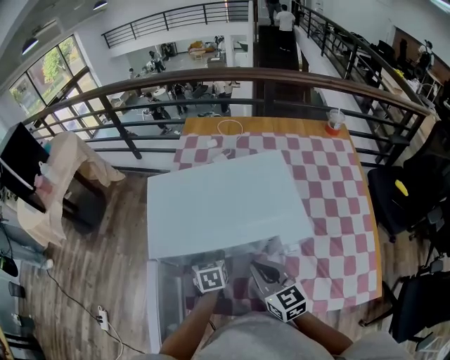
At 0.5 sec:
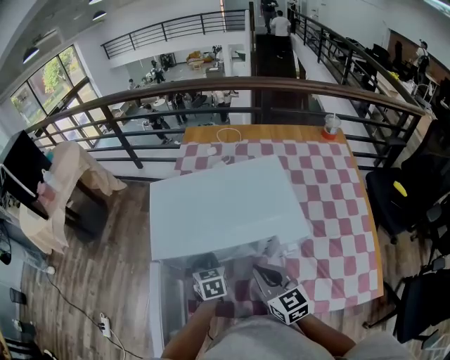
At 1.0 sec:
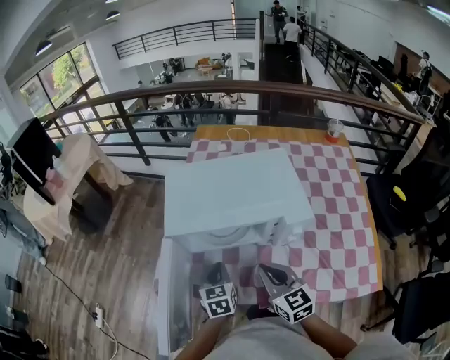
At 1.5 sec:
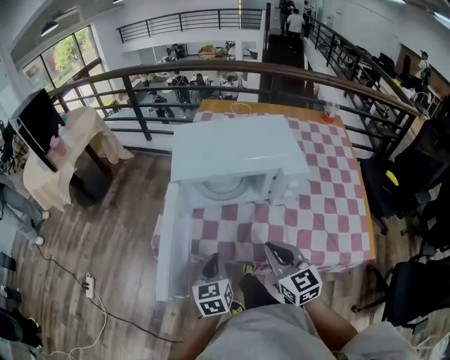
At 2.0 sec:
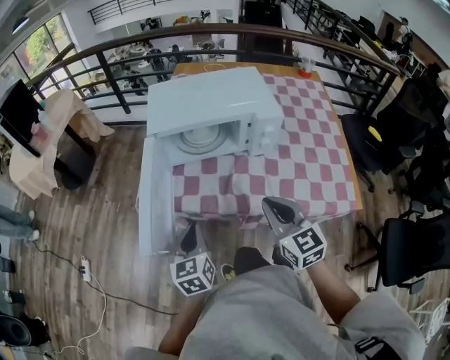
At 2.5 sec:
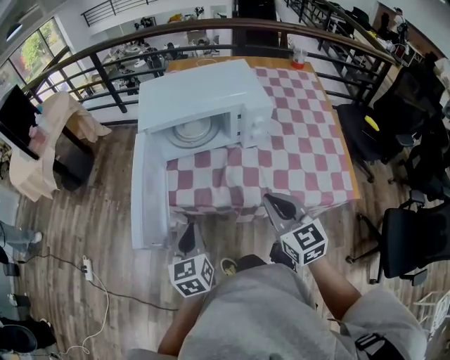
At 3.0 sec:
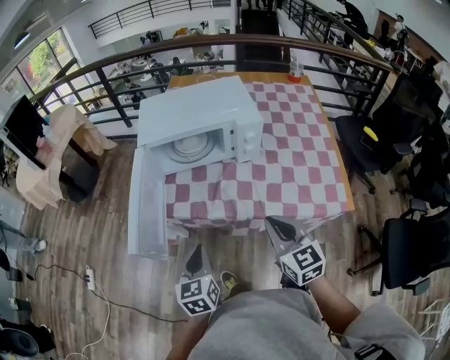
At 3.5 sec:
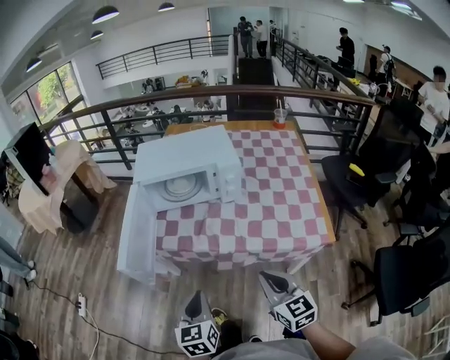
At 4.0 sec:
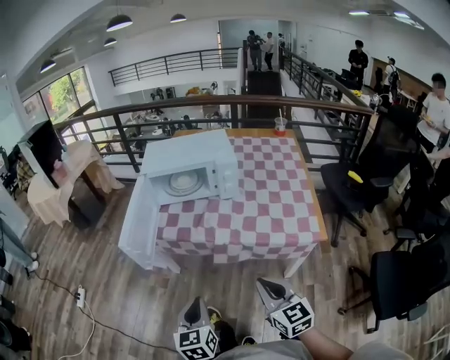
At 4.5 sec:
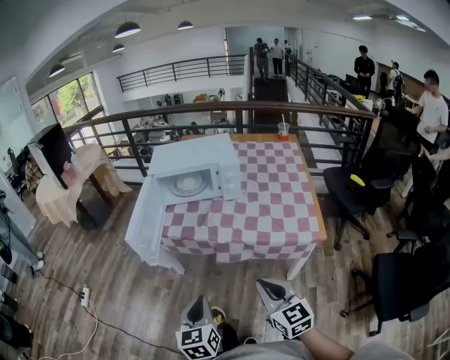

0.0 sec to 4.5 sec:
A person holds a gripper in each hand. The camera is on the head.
0.0 sec to 2.0 sec: Both grippers travel together backward, approximately 30 cm. The left gripper swivels roughly 30 degrees, and closes.
2.0 sec to 4.5 sec: Both grippers travel together backward, roughly 30 cm.

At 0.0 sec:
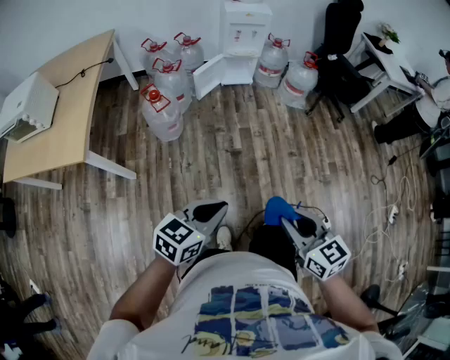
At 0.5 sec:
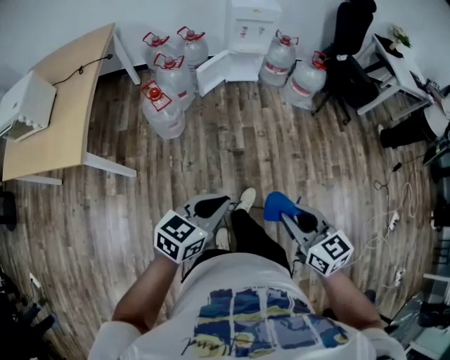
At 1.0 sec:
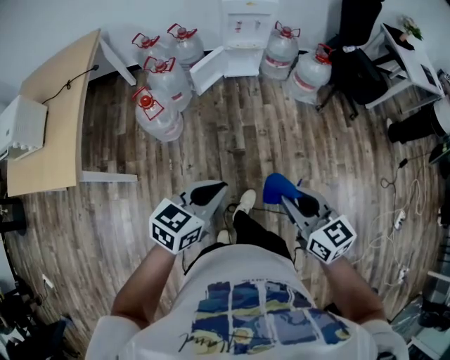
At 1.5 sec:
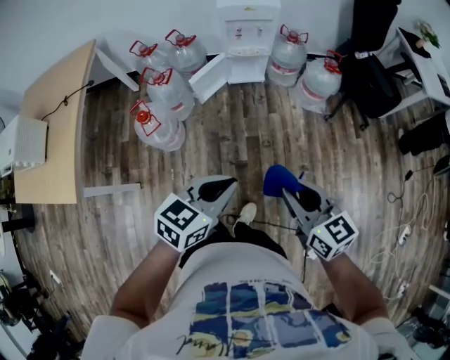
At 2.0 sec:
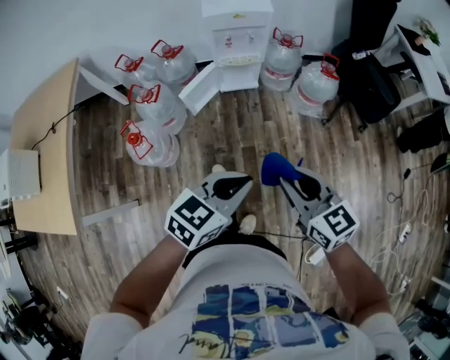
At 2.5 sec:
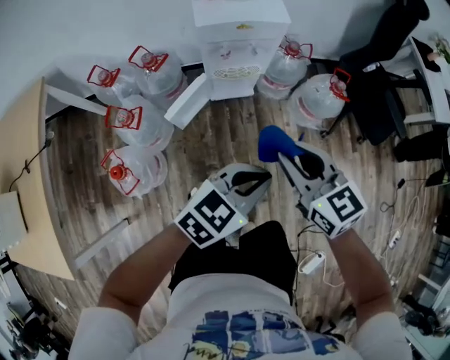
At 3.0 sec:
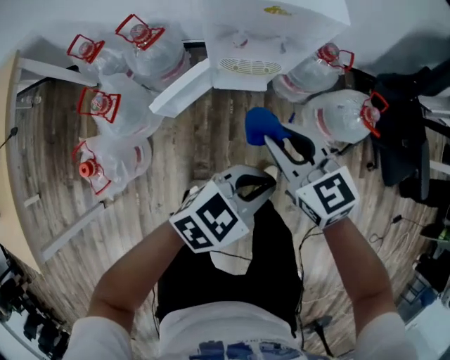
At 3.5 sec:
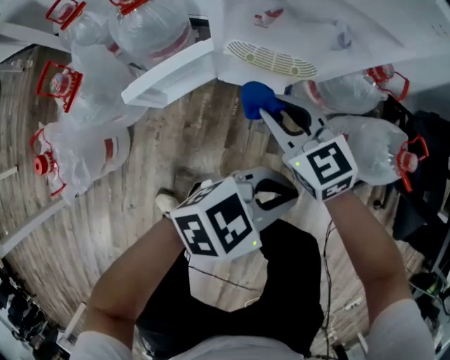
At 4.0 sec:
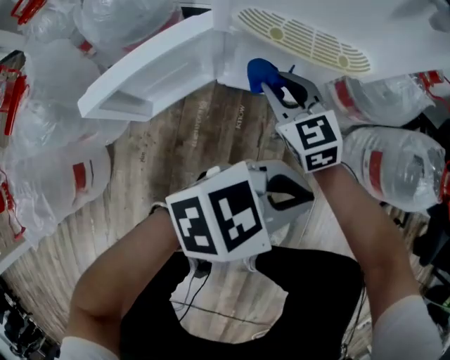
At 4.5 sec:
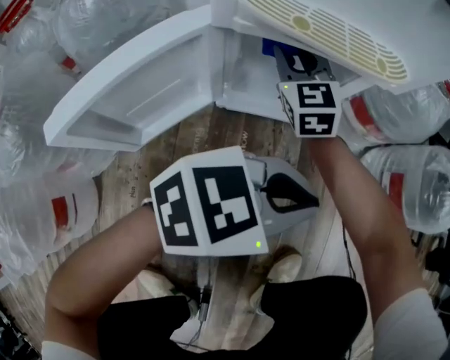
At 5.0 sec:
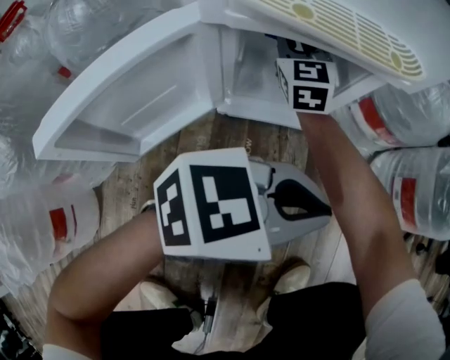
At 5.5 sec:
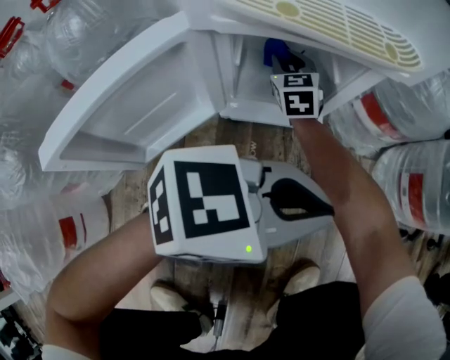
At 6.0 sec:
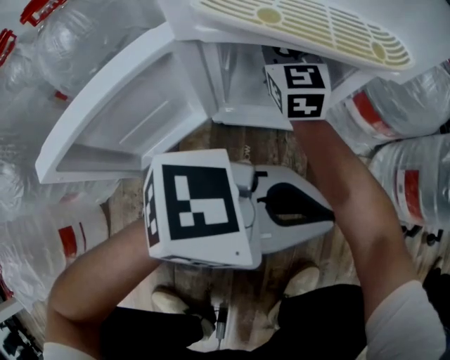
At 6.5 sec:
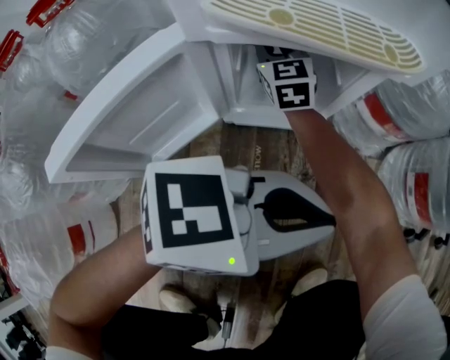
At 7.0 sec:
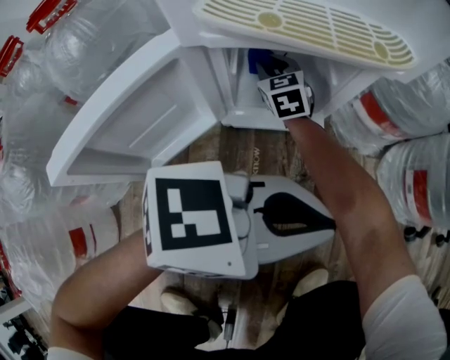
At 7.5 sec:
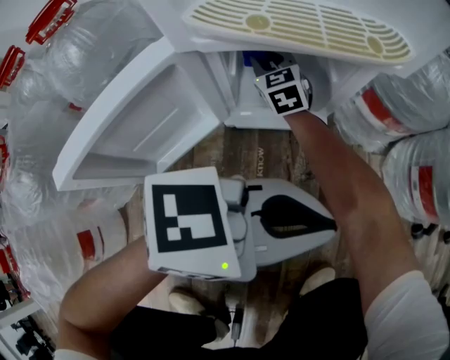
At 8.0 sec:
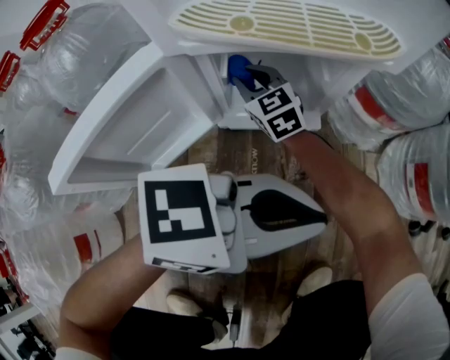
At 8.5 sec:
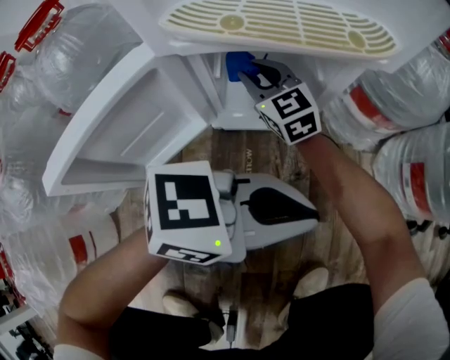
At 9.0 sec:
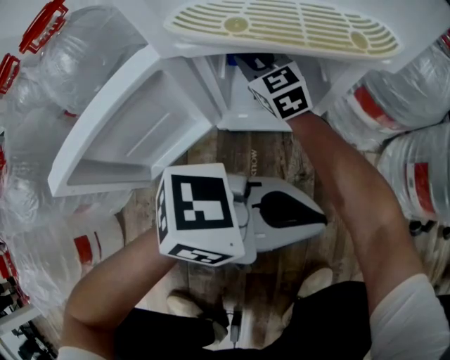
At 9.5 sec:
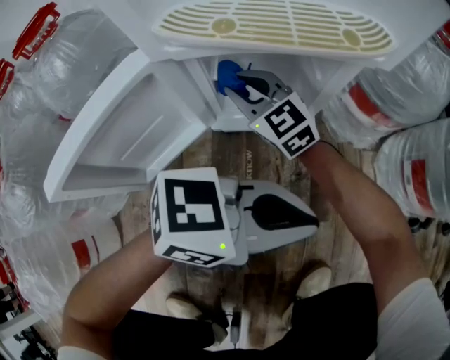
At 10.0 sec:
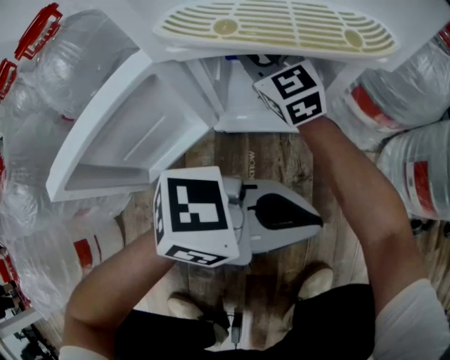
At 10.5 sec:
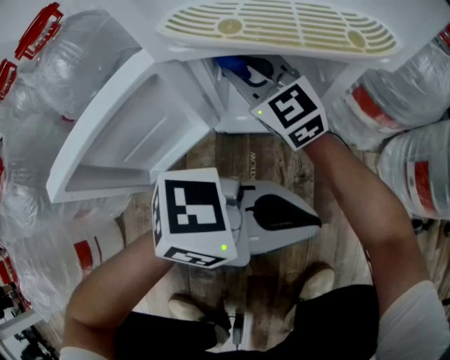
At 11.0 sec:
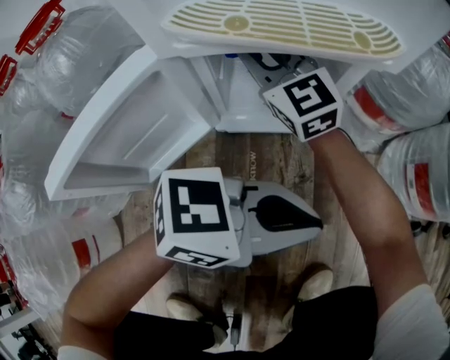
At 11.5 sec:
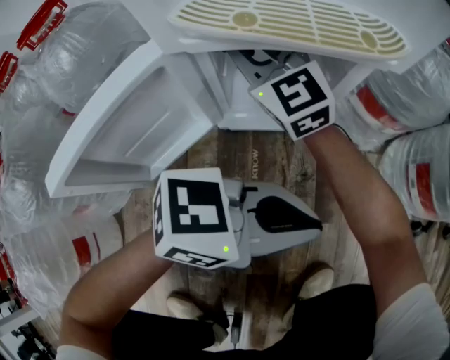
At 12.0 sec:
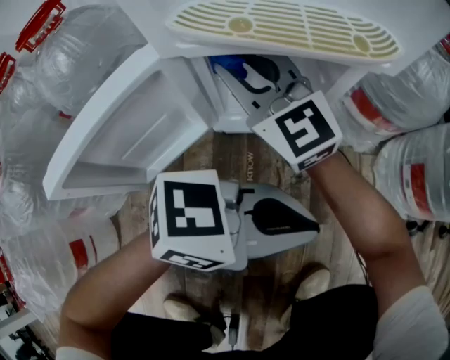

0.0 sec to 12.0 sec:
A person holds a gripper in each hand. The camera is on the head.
0.0 sec to 2.0 sec: The pair of grippers is taken forward, roughly 50 cm.
2.0 sec to 4.0 sec: Both grippers are carried approximately 50 cm. The two grippers go about 60 cm downward. The right gripper turns by roughly 30 degrees.
4.0 sec to 6.0 sec: The left gripper moves downward, some 5 cm. Meanwhile the right gripper is displaced forward and to the left by roughly 20 cm, and turns by approximately 30 degrees.
6.0 sec to 8.0 sec: The right gripper shifts approximately 15 cm downward and backward, and changes its angle by approximately 20 degrees.
8.0 sec to 10.0 sec: The right gripper goes about 10 cm upward.
10.0 sec to 12.0 sec: The right gripper changes place by roughly 10 cm.

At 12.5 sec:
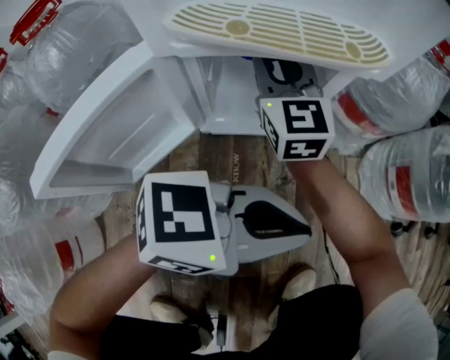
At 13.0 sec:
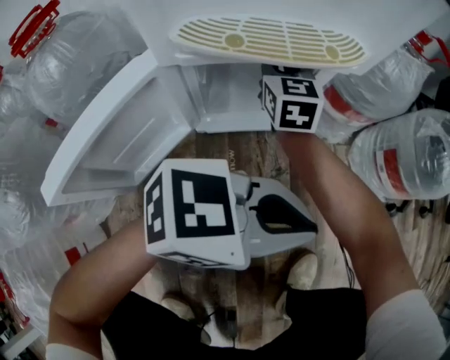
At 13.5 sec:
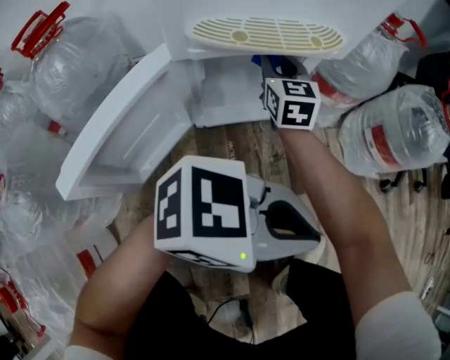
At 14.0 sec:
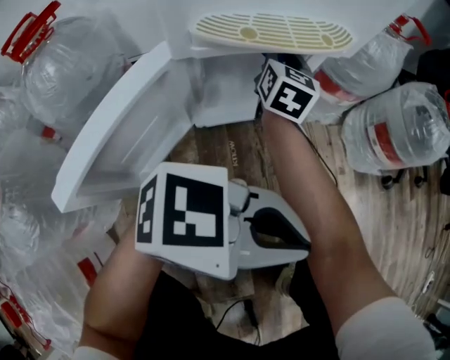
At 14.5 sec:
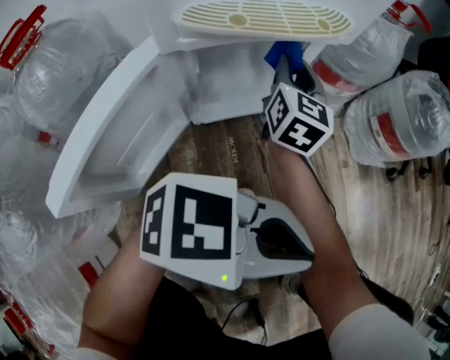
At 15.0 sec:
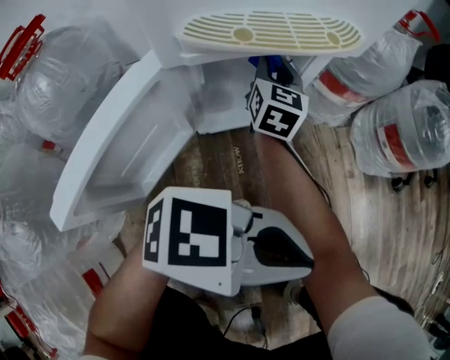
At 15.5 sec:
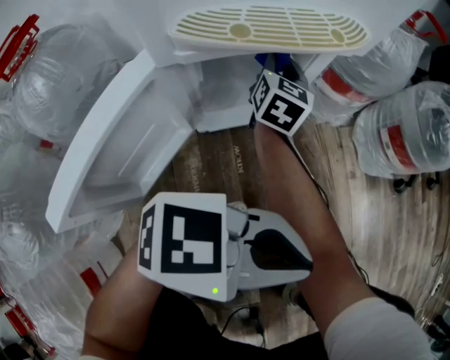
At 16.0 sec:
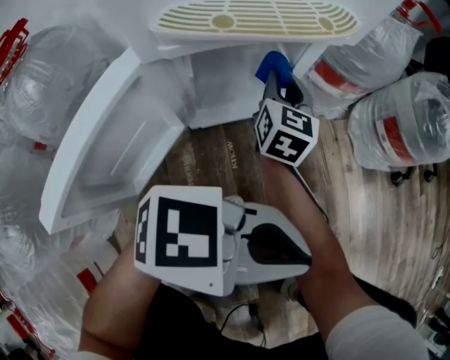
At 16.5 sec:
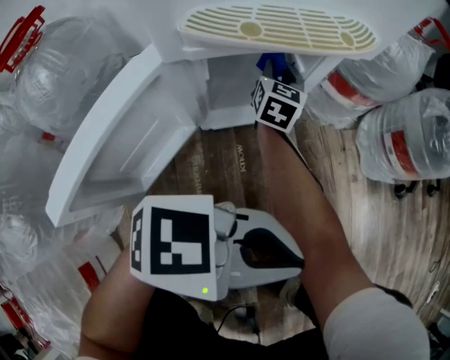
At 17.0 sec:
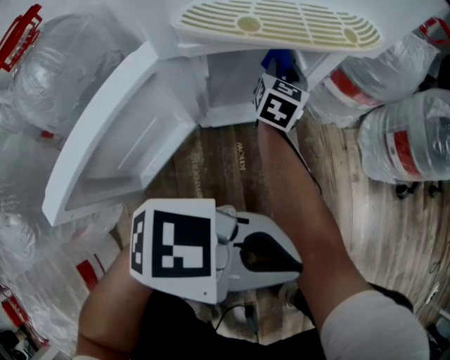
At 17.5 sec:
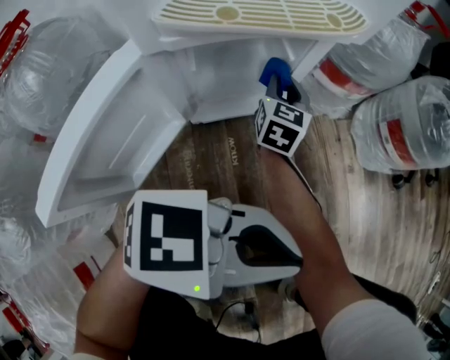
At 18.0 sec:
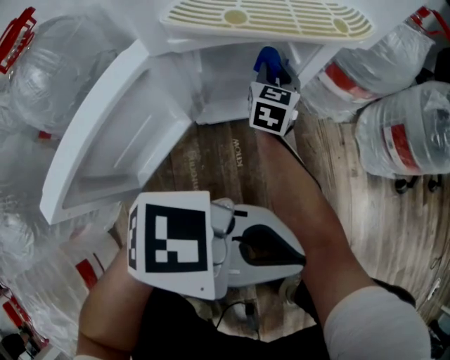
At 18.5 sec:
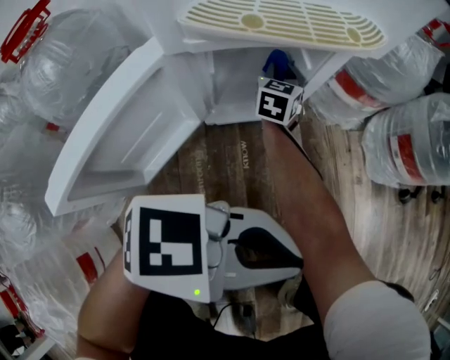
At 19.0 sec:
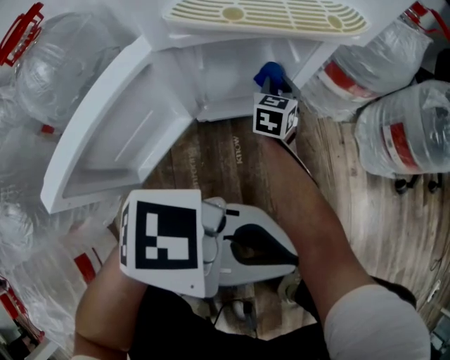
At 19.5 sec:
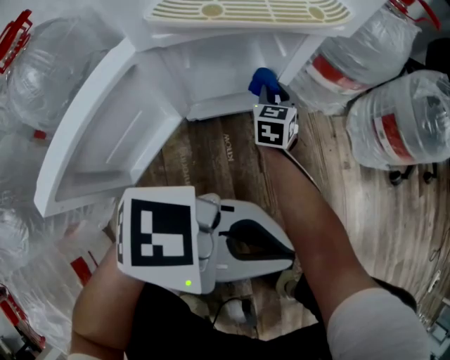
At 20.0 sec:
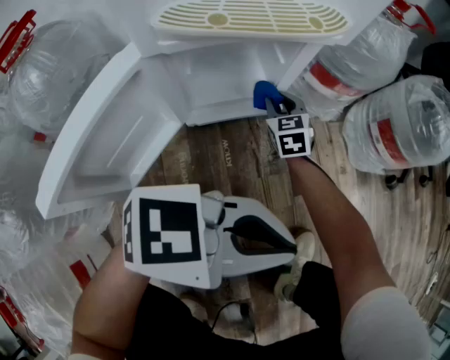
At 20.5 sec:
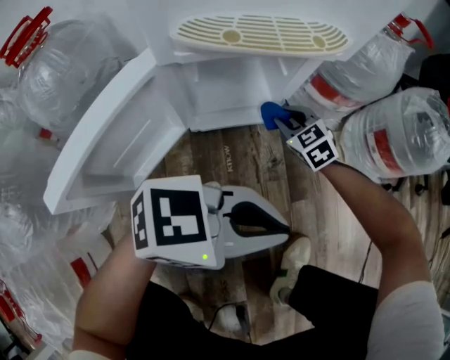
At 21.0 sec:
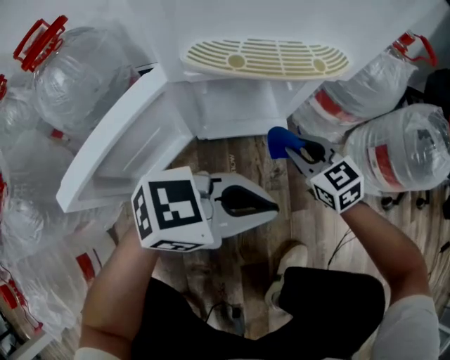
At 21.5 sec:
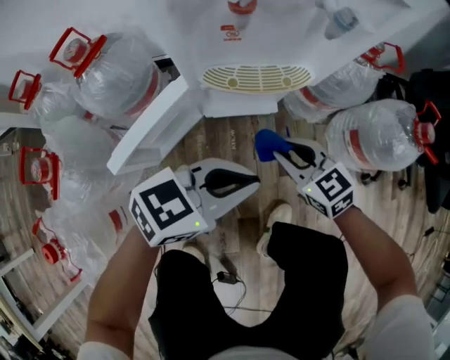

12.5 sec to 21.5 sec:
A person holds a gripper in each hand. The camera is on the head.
12.5 sec to 14.5 sec: The left gripper ends up approximately 15 cm from where it was, and turns by some 30 degrees. Meanwhile the right gripper changes place by some 10 cm, and swivels roughly 40 degrees.
14.5 sec to 17.0 sec: The right gripper moves downward and to the left, about 15 cm.
17.0 sec to 19.5 sec: The right gripper moves left and right over roughly 10 cm, changing direction 2 times, and rotates approximately 20 degrees.
19.5 sec to 21.5 sec: The right gripper heads upward, covering roughly 25 cm, and rotates roughly 50 degrees. The left gripper shifts about 10 cm upward, and swivels approximately 40 degrees.

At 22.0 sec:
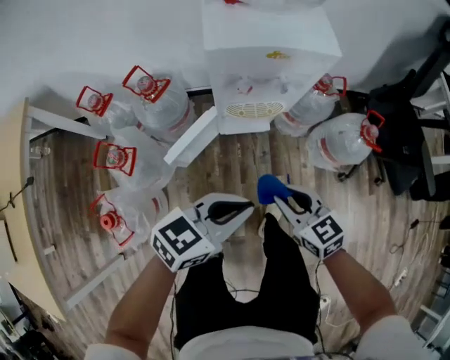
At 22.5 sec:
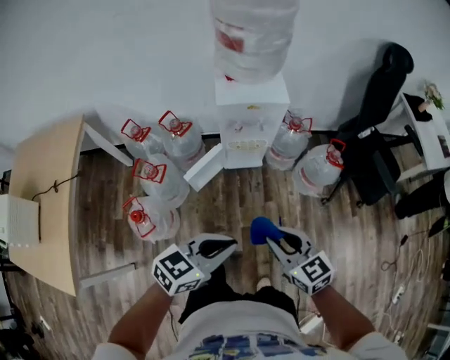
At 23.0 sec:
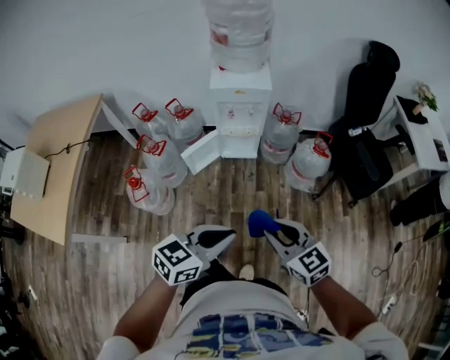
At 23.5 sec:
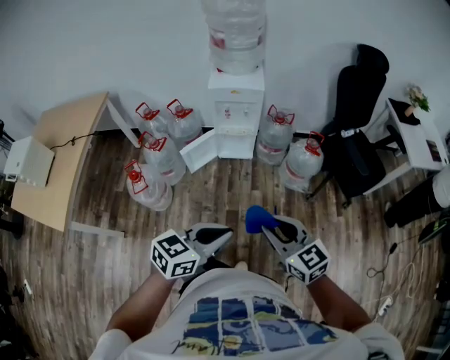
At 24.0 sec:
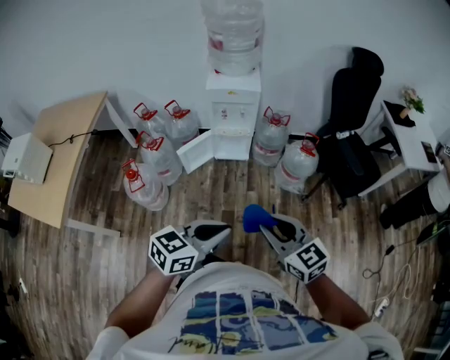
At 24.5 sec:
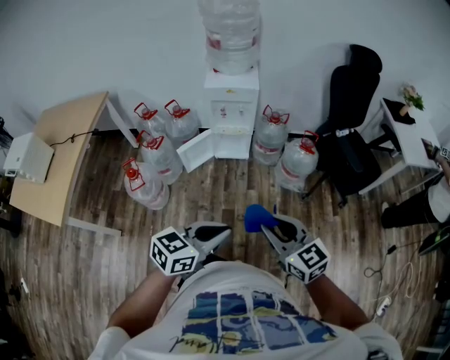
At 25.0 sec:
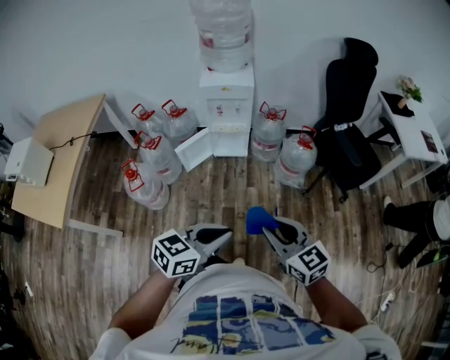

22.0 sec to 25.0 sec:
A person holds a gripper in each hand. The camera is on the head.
22.0 sec to 23.5 sec: Both grippers are carried backward and to the right, roughly 40 cm. The two grippers go approximately 30 cm upward.
23.5 sec to 25.0 sec: The right gripper heads to the right, covering roughly 5 cm. The left gripper ends up about 5 cm from where it was.
